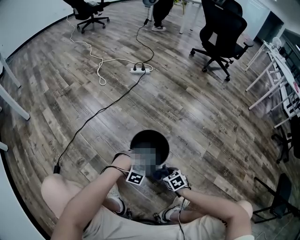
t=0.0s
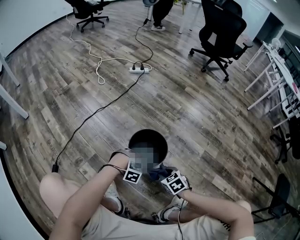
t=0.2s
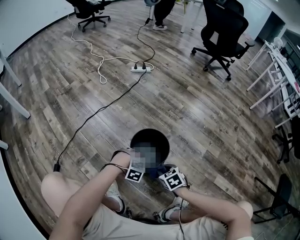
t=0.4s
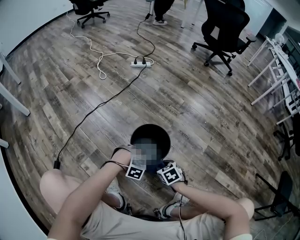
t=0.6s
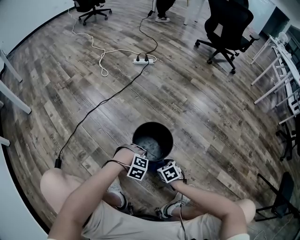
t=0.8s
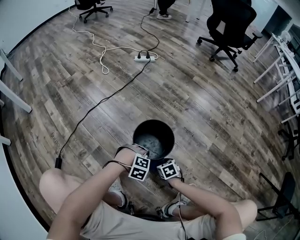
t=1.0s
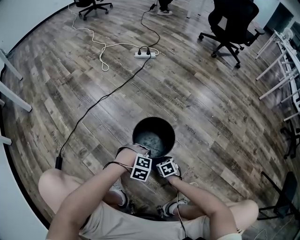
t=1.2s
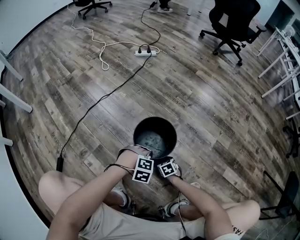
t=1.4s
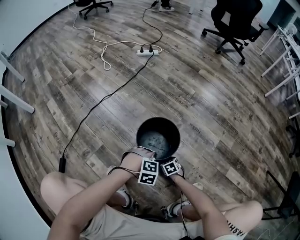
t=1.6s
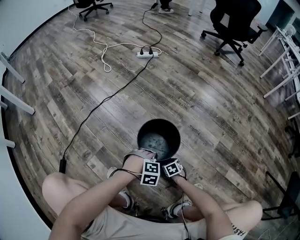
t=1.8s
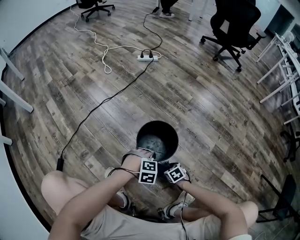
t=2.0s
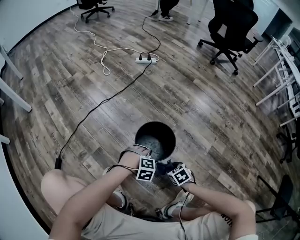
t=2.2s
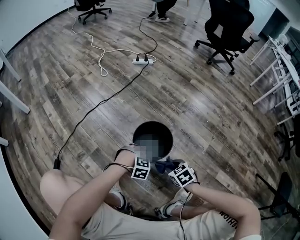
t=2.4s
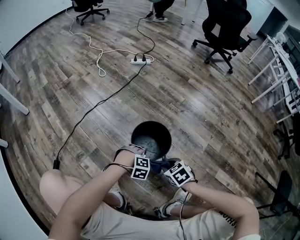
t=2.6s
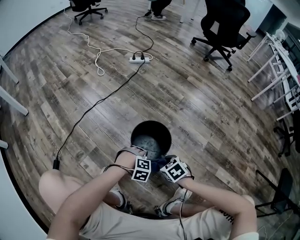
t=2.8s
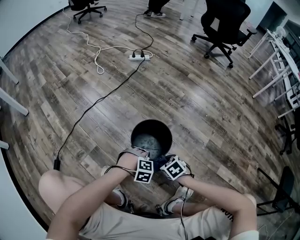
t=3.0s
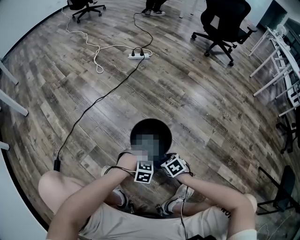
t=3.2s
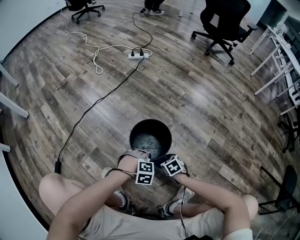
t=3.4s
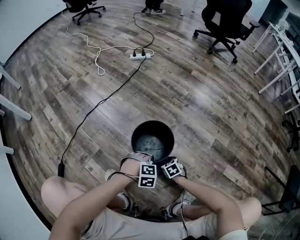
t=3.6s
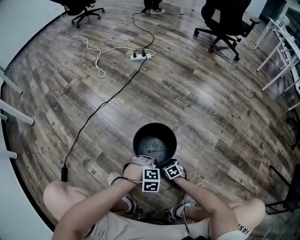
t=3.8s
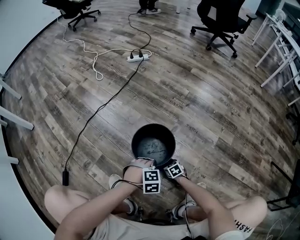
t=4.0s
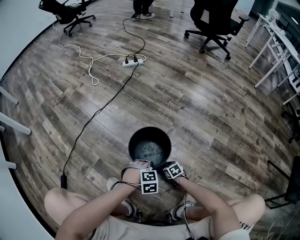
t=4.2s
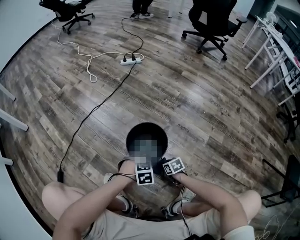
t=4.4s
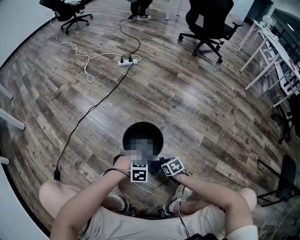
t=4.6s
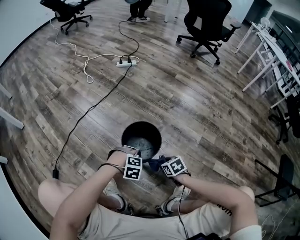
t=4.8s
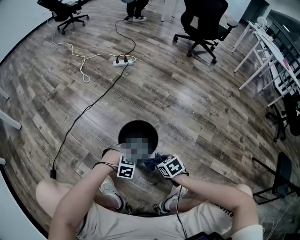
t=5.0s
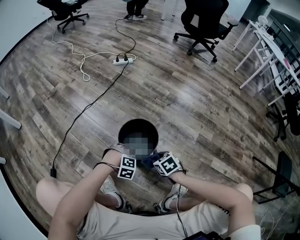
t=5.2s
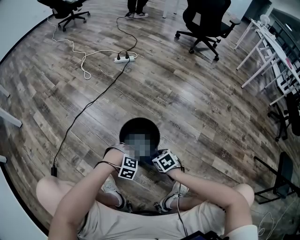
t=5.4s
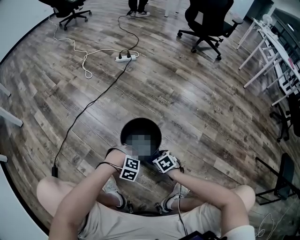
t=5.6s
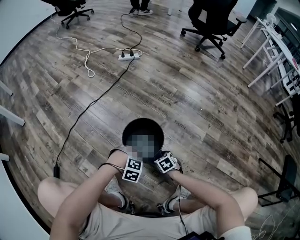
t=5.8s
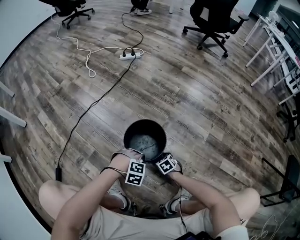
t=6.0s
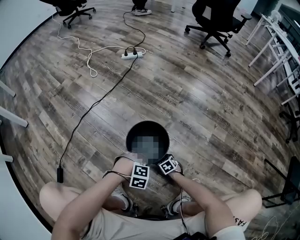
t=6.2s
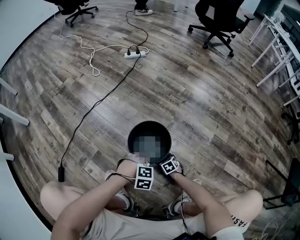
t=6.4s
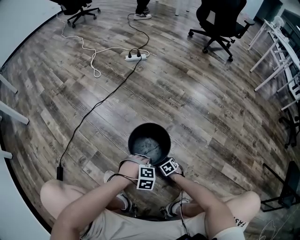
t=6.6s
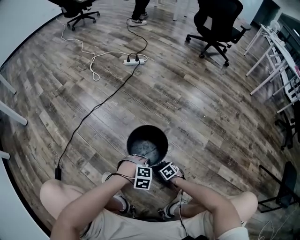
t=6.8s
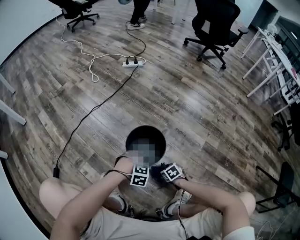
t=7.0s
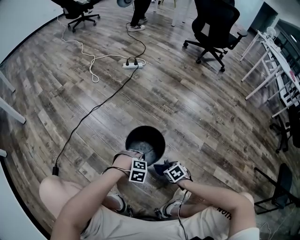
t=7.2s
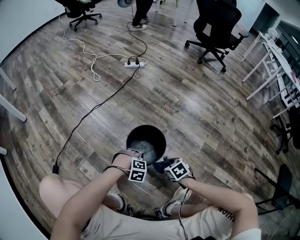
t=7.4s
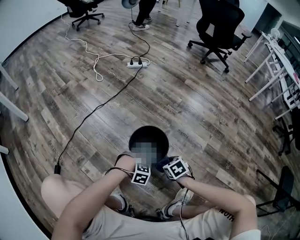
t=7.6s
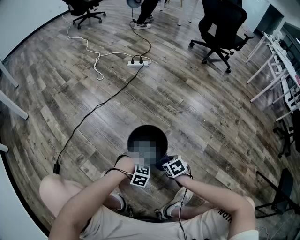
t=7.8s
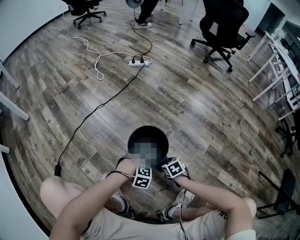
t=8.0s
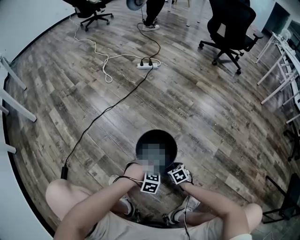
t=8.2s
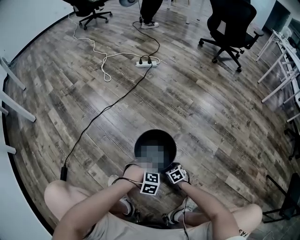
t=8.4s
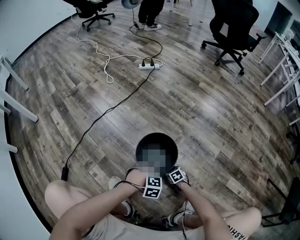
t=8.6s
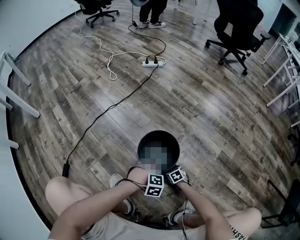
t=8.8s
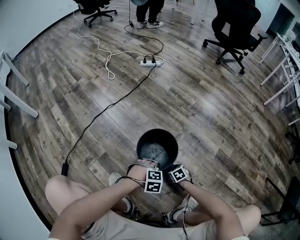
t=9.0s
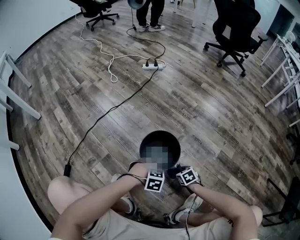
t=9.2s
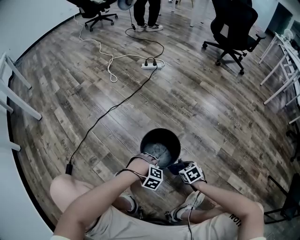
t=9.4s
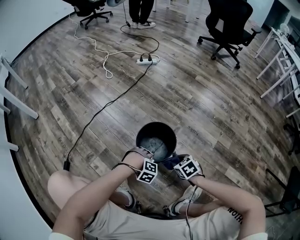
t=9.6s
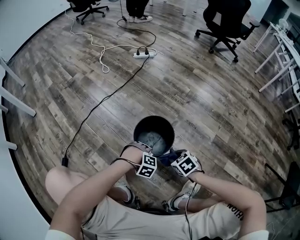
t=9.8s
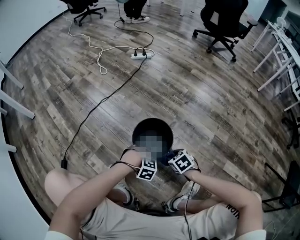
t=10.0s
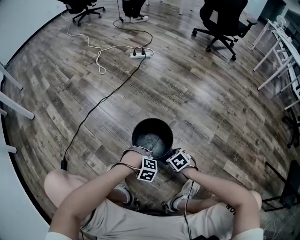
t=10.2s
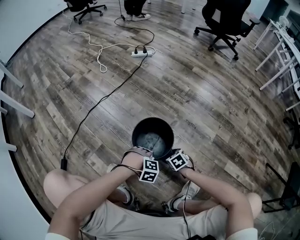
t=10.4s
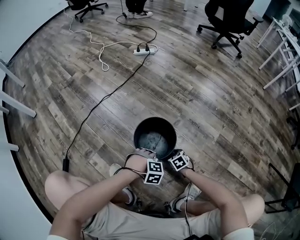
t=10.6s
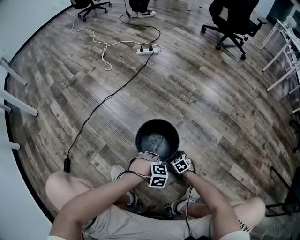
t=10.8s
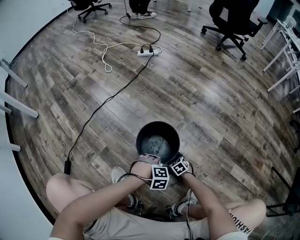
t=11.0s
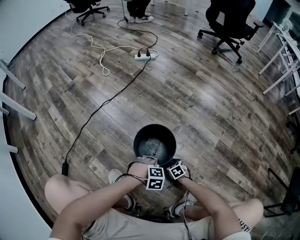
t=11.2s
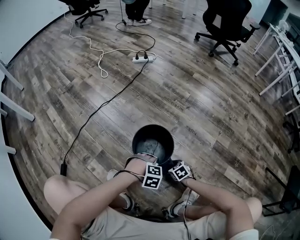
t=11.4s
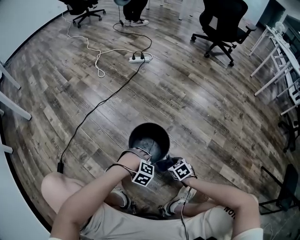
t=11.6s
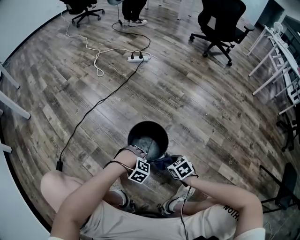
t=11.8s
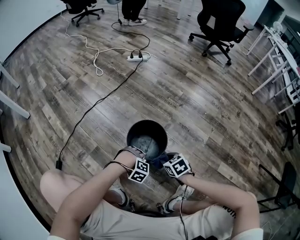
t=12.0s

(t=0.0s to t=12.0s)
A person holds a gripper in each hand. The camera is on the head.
t=0.0s - t=1.6s: The right gripper shifts about 15 cm downward.
t=1.6s - t=3.0s: The right gripper travels upward by some 20 cm.
t=3.0s - t=4.4s: The right gripper heads downward, covering about 10 cm, and swivels some 20 degrees.
t=4.4s - t=6.0s: The right gripper travels upward and back again, roughly 15 cm each way, and swivels about 20 degrees.
t=6.0s - t=7.6s: The right gripper goes approximately 15 cm upward.
t=7.6s - t=9.0s: The right gripper moves downward, some 20 cm.
t=9.0s - t=10.4s: The right gripper goes about 10 cm upward.
t=10.4s - t=12.0s: The right gripper is displaced upward by about 10 cm.

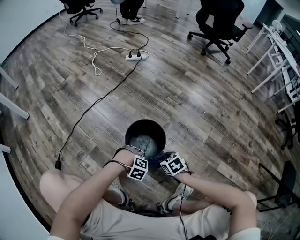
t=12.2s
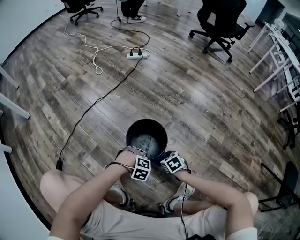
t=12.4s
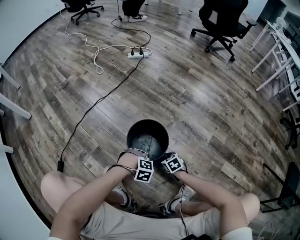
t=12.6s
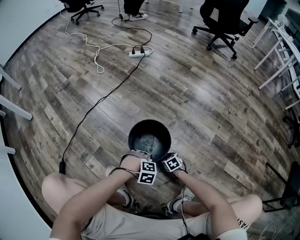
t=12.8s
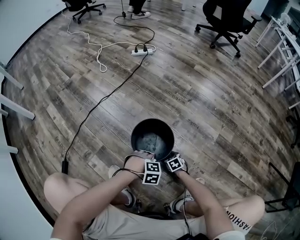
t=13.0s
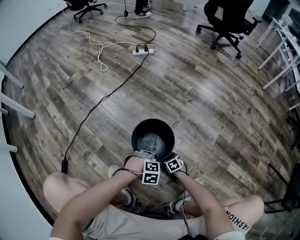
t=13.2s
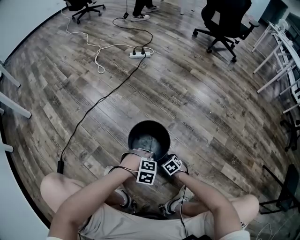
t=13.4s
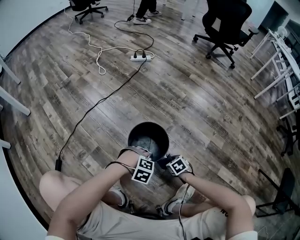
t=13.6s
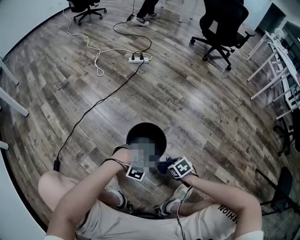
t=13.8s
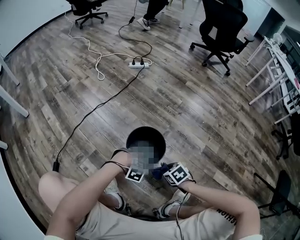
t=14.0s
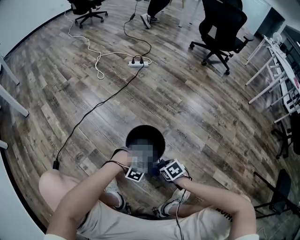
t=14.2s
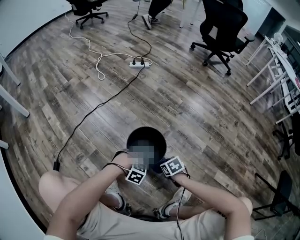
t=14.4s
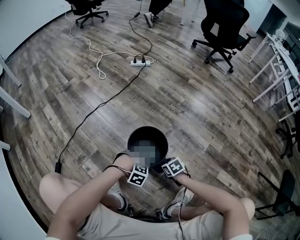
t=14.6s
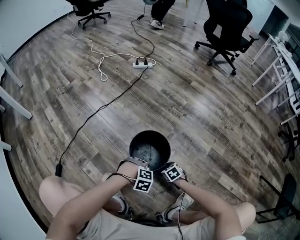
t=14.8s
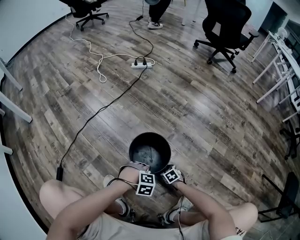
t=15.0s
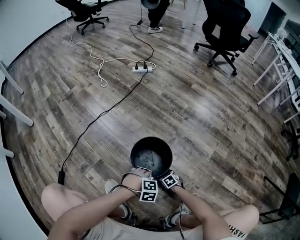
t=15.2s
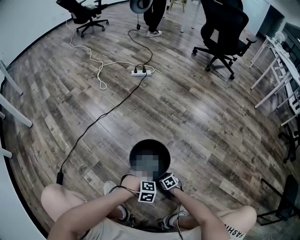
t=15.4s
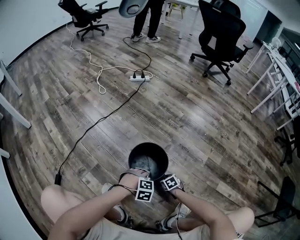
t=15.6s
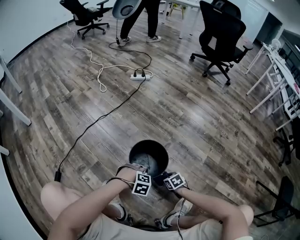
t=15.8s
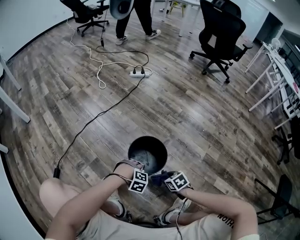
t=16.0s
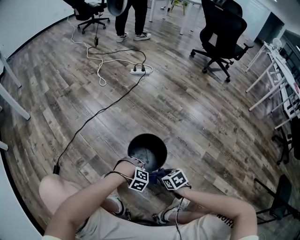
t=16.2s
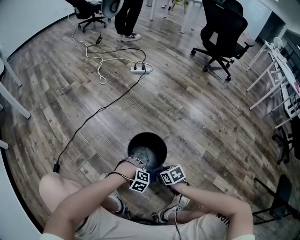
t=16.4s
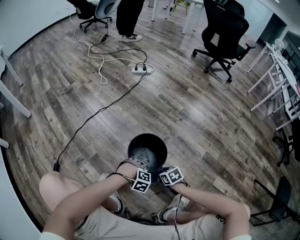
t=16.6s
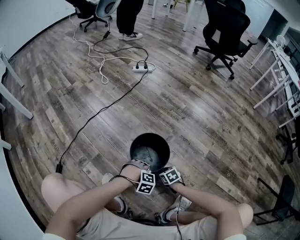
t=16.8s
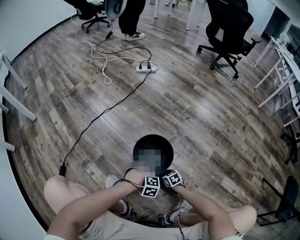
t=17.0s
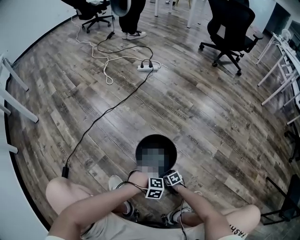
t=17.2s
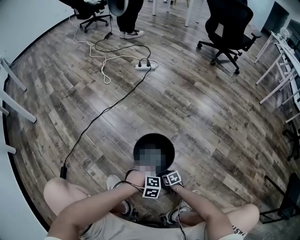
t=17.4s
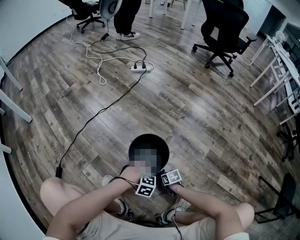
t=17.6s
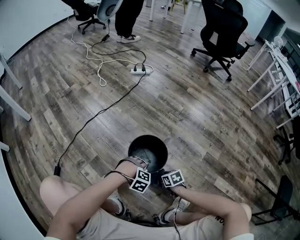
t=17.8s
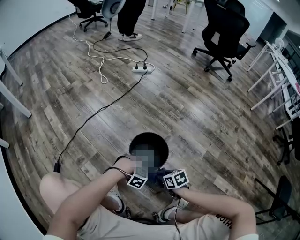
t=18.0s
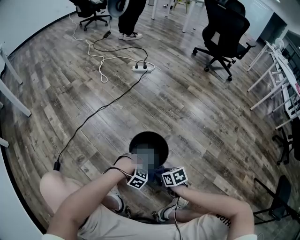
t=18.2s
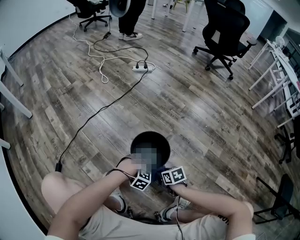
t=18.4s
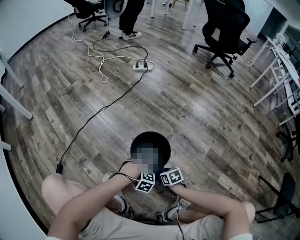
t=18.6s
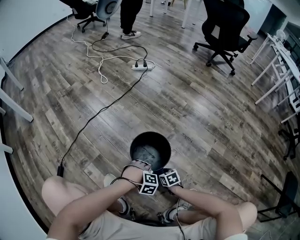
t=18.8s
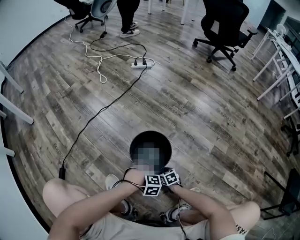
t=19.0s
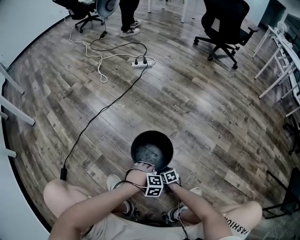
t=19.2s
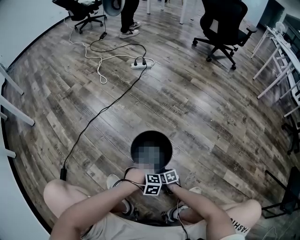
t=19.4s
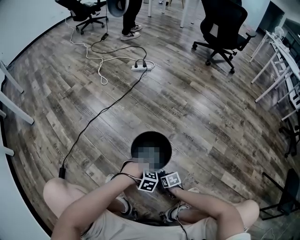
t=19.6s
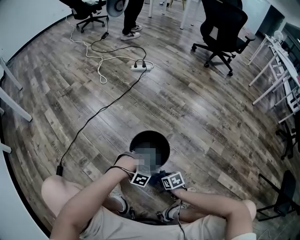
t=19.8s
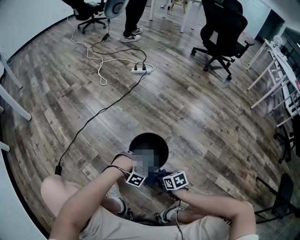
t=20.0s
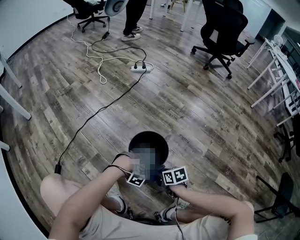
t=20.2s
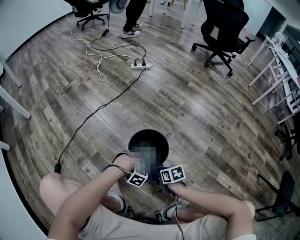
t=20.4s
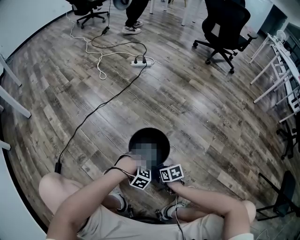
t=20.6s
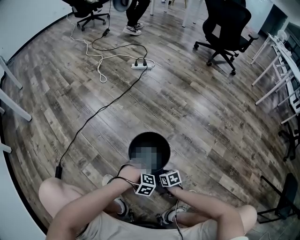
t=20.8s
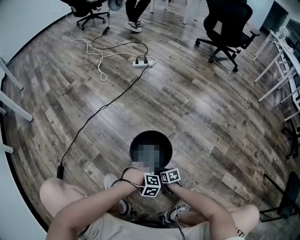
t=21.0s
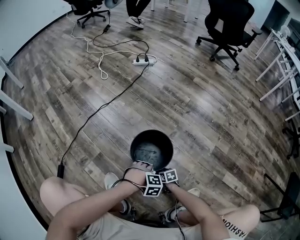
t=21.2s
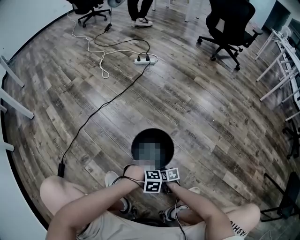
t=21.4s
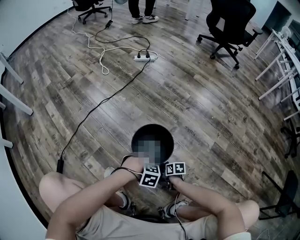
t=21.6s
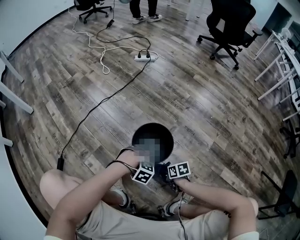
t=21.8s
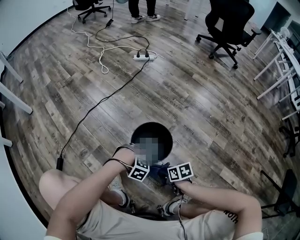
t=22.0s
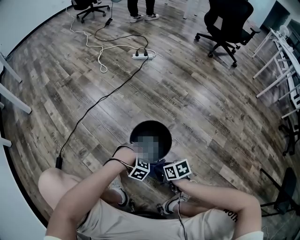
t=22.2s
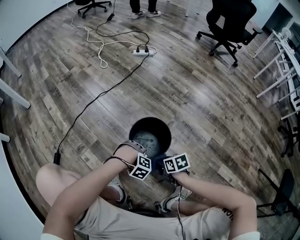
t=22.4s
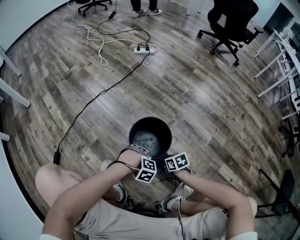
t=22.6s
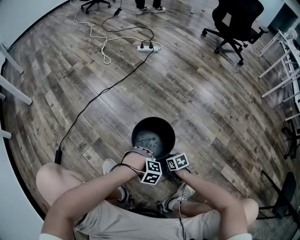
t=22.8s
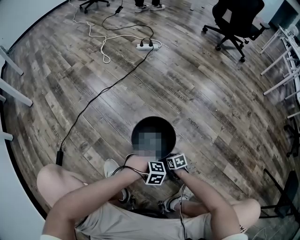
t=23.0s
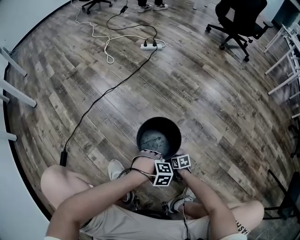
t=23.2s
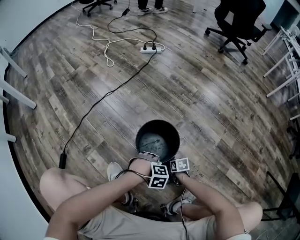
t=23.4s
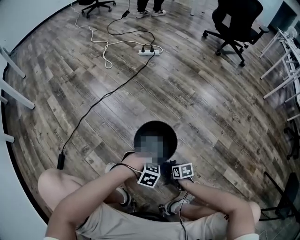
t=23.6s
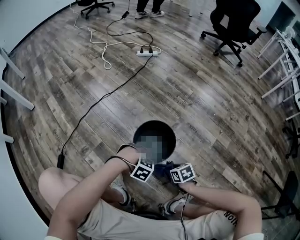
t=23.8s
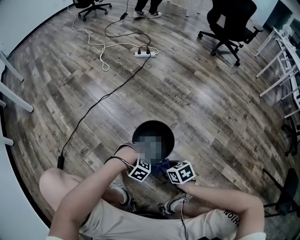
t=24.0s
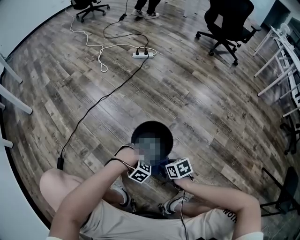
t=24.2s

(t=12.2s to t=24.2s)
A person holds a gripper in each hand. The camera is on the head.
t=12.2s - t=13.8s: The right gripper moves about 20 cm downward and comes back.
t=13.8s - t=15.2s: The right gripper moves downward, approximately 20 cm.
t=15.2s - t=16.6s: The right gripper is displaced upward by about 20 cm.
t=16.6s - t=18.2s: The right gripper reaches approximately 20 cm downward, then returns.
t=18.2s - t=19.8s: The right gripper travels downward by about 10 cm.
t=19.8s - t=21.2s: The right gripper travels downward by about 15 cm.
t=21.2s - t=22.6s: The right gripper moves upward, roughly 15 cm.
t=22.6s - t=24.2s: The right gripper goes downward and returns, approximately 15 cm each way.
